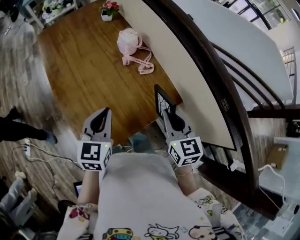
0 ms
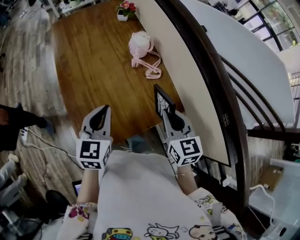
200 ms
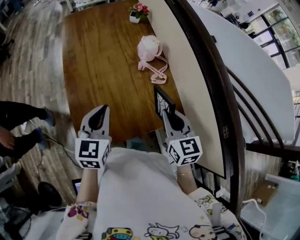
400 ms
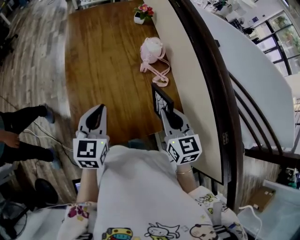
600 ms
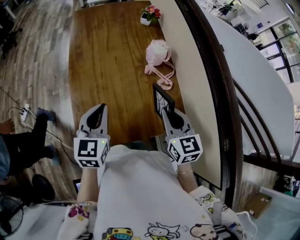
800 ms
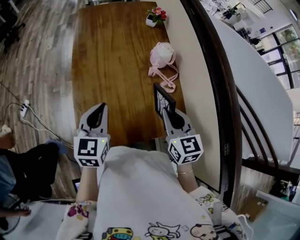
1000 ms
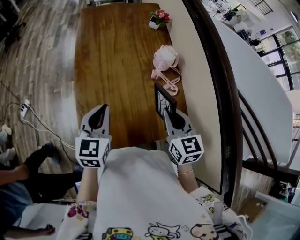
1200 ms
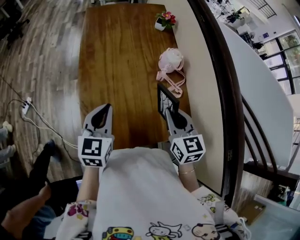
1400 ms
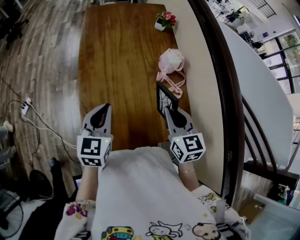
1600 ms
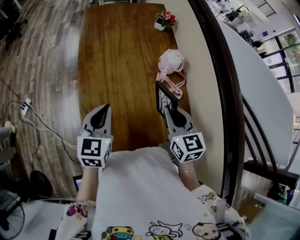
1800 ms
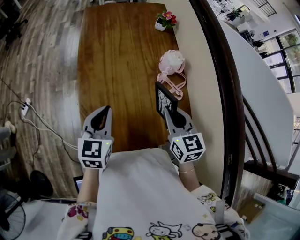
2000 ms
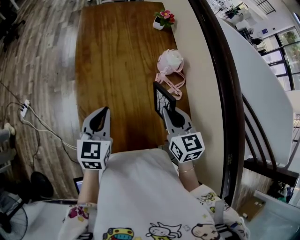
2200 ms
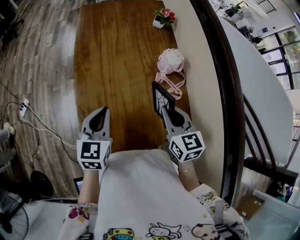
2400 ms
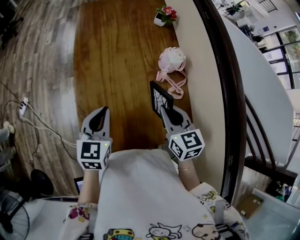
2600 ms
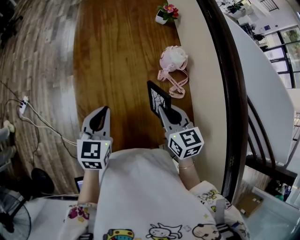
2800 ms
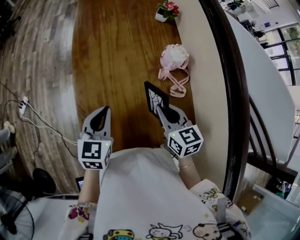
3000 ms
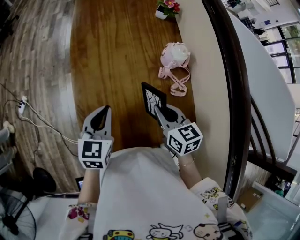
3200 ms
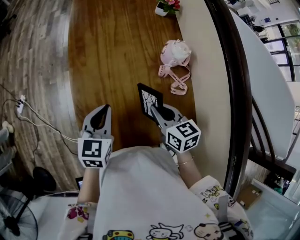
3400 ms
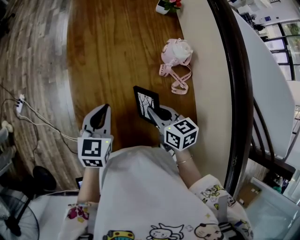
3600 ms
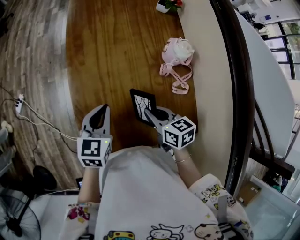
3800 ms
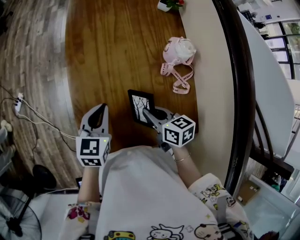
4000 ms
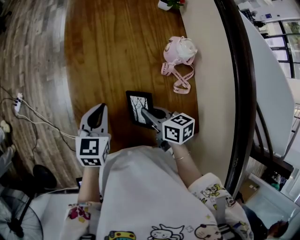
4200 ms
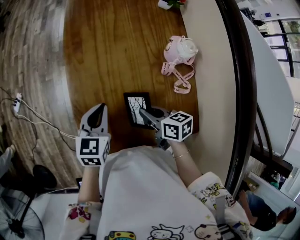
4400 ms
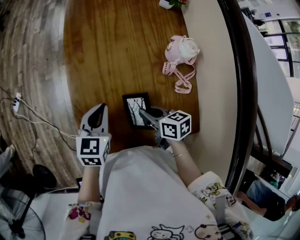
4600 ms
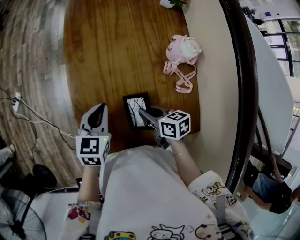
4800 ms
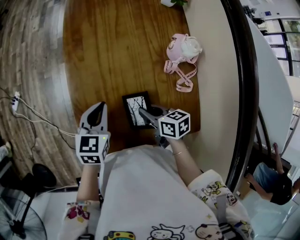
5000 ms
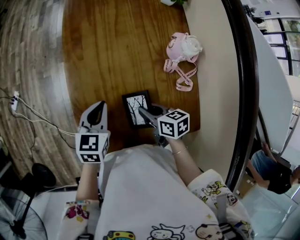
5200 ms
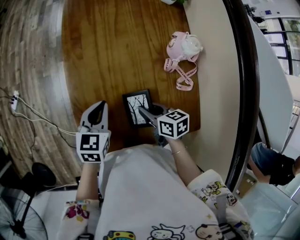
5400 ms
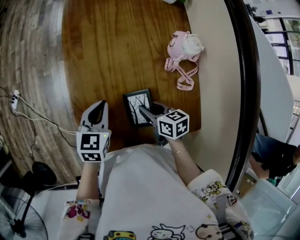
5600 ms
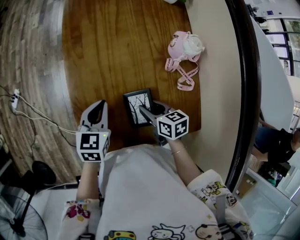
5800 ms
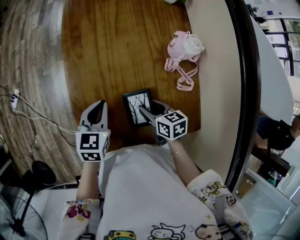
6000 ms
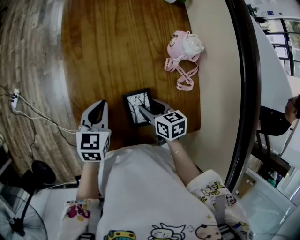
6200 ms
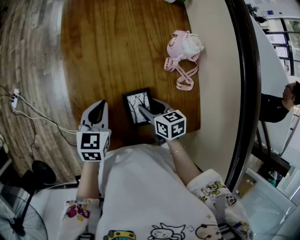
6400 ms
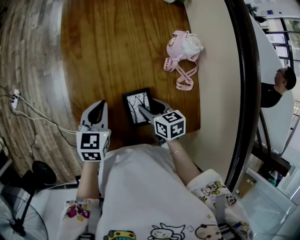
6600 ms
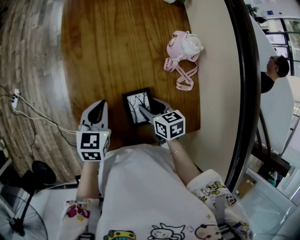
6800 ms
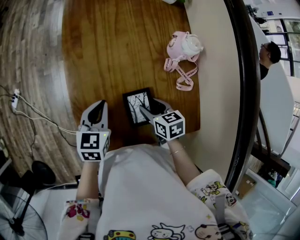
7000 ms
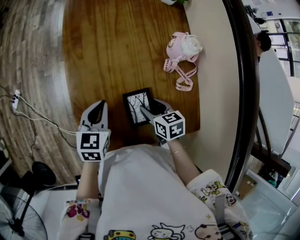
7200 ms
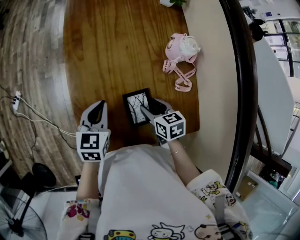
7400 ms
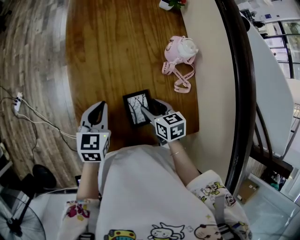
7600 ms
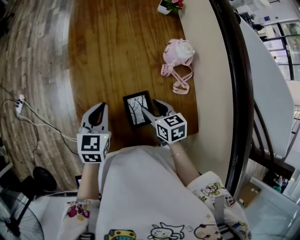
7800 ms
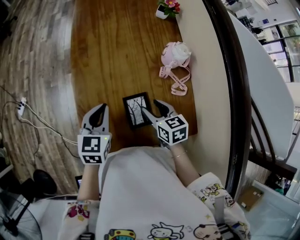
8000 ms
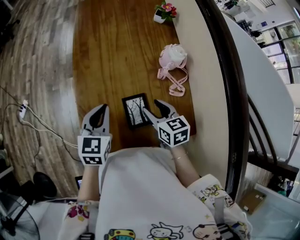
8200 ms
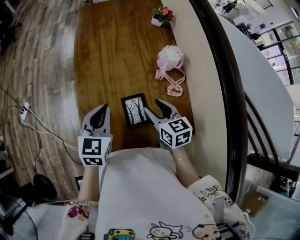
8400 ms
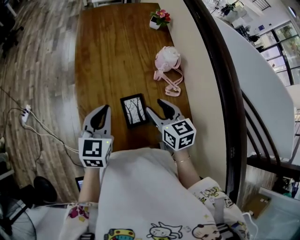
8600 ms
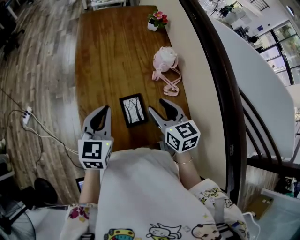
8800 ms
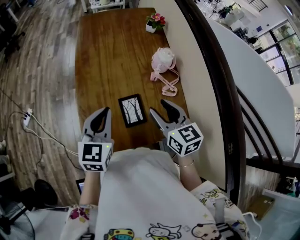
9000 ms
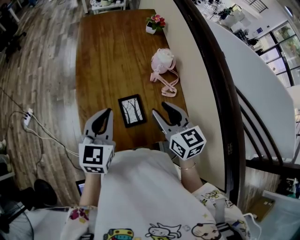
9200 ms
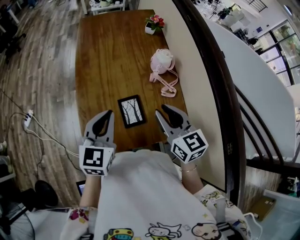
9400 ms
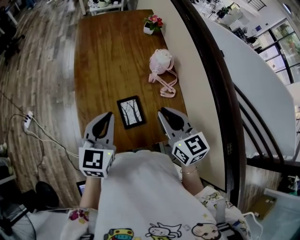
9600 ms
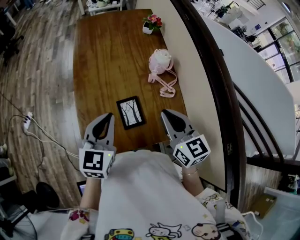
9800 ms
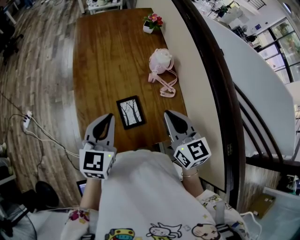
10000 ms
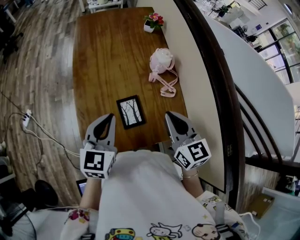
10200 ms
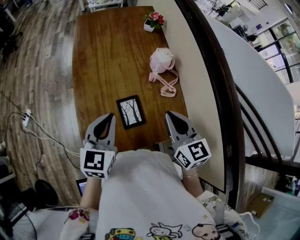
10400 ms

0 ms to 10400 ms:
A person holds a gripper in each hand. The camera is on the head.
0 ms to 1400 ms: The right gripper is displaced forward and to the left by roughly 15 cm, and swivels about 20 degrees; the left gripper moves to the left, some 10 cm, and rotates about 20 degrees.
1400 ms to 3000 ms: The left gripper moves some 5 cm. Meanwhile the right gripper travels downward by some 5 cm.
3000 ms to 4400 ms: The left gripper goes some 5 cm downward, while the right gripper goes approximately 10 cm downward and to the left, and changes its angle by some 30 degrees.
4400 ms to 6000 ms: The right gripper heads downward, covering roughly 5 cm, and opens up.
6000 ms to 7400 ms: The grippers move only a little.
7400 ms to 9000 ms: The right gripper heads upward, covering roughly 20 cm, and changes its angle by about 30 degrees. Meanwhile the left gripper moves upward and backward, about 15 cm, and changes its angle by about 20 degrees.
9000 ms to 10400 ms: The right gripper changes place by about 5 cm, and closes.

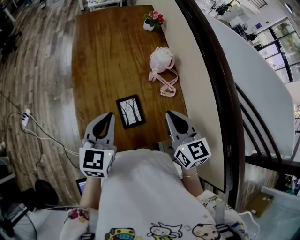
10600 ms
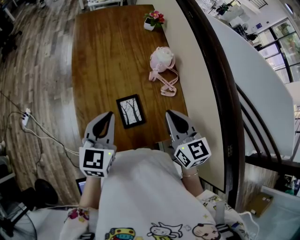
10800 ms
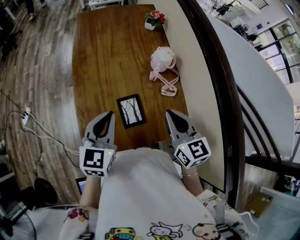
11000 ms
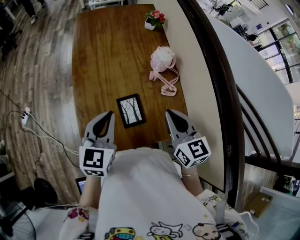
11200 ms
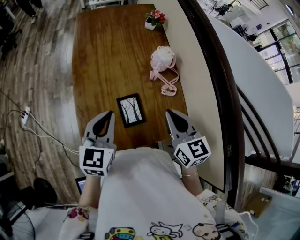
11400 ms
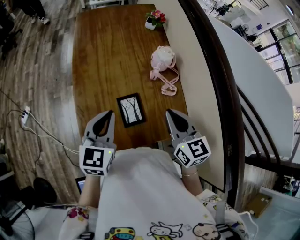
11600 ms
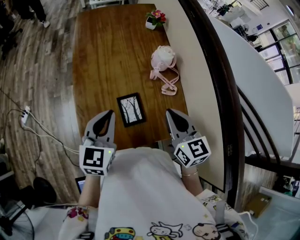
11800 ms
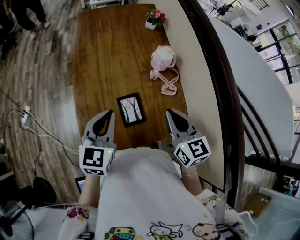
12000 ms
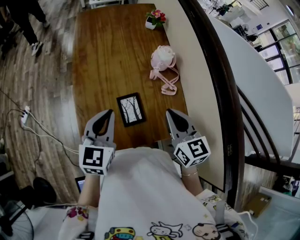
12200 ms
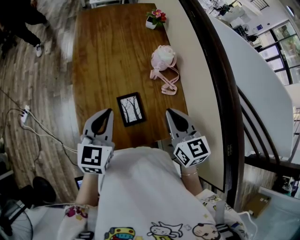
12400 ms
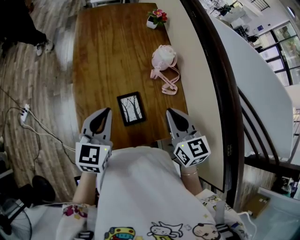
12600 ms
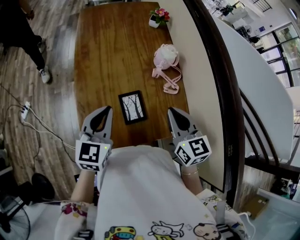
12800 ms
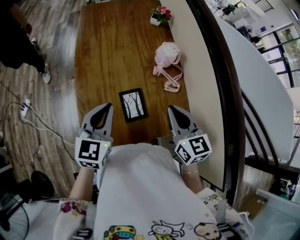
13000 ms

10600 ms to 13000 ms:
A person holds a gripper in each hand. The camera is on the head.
10600 ms to 11800 ms: Both grippers stay put.
11800 ms to 13000 ms: Both grippers stay about where they are.

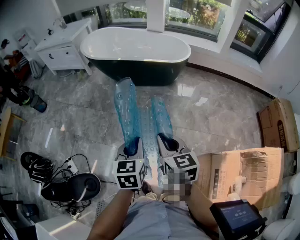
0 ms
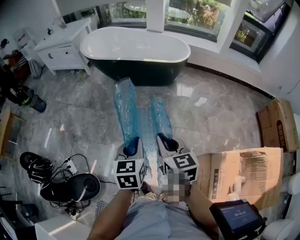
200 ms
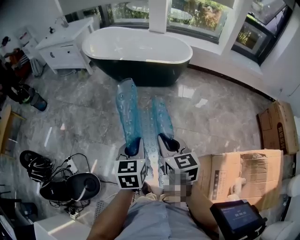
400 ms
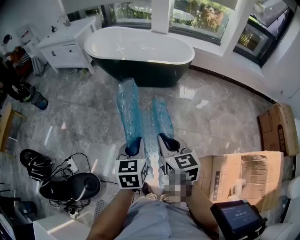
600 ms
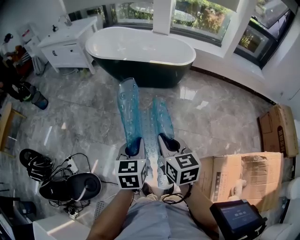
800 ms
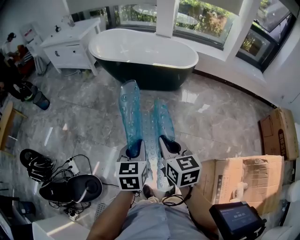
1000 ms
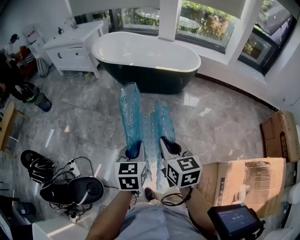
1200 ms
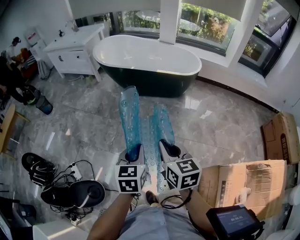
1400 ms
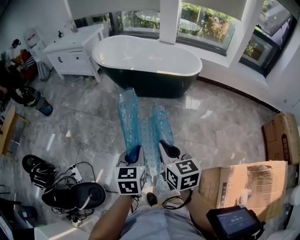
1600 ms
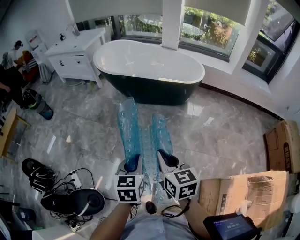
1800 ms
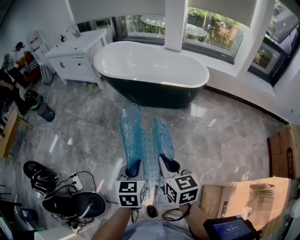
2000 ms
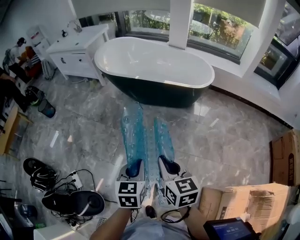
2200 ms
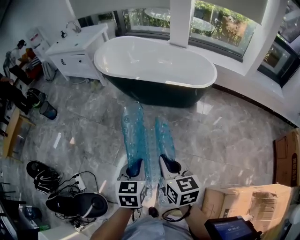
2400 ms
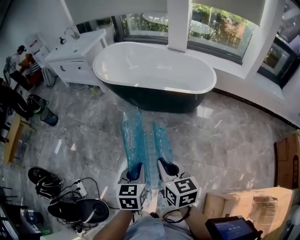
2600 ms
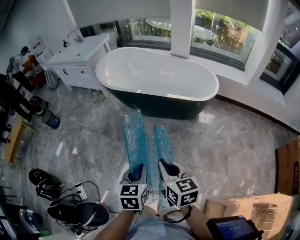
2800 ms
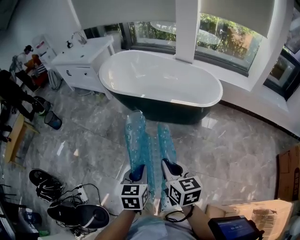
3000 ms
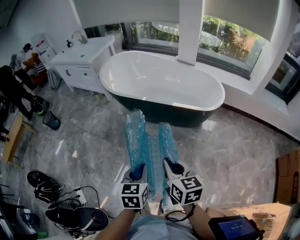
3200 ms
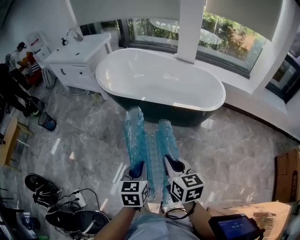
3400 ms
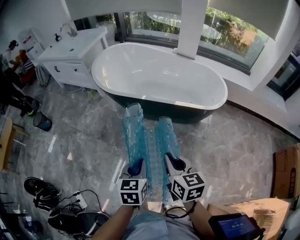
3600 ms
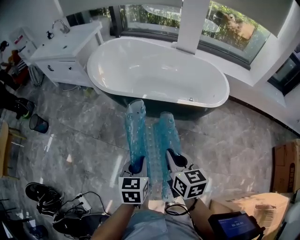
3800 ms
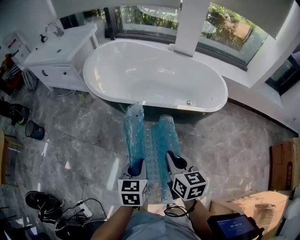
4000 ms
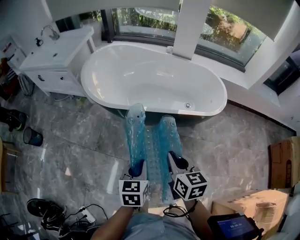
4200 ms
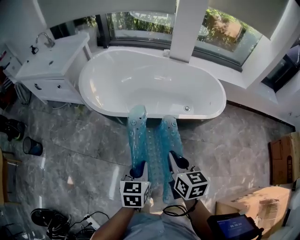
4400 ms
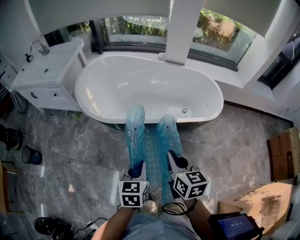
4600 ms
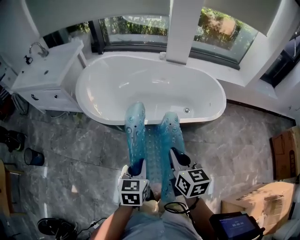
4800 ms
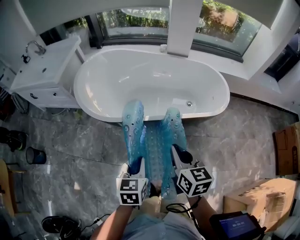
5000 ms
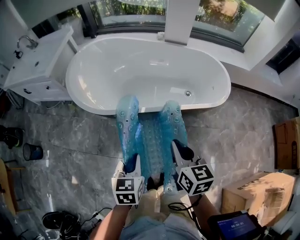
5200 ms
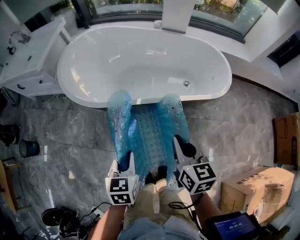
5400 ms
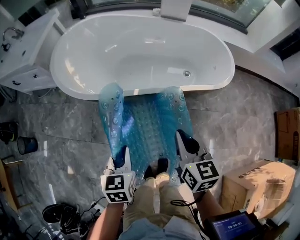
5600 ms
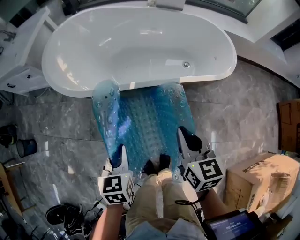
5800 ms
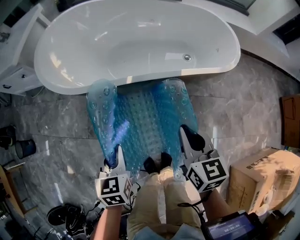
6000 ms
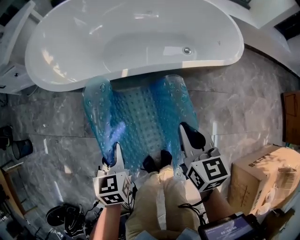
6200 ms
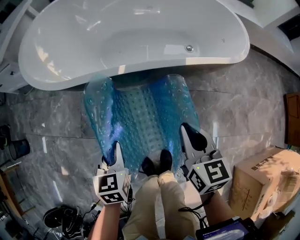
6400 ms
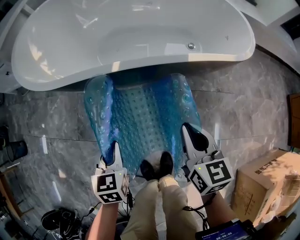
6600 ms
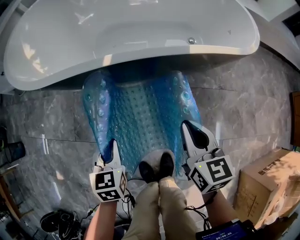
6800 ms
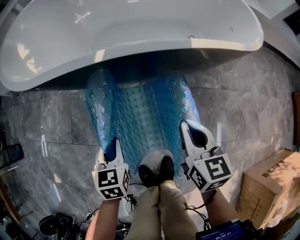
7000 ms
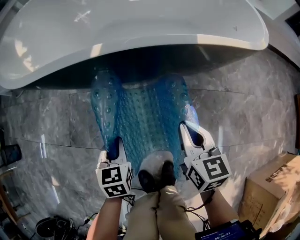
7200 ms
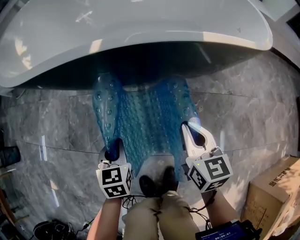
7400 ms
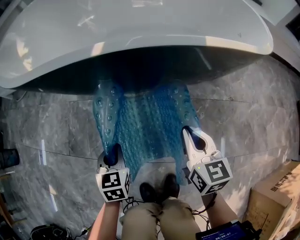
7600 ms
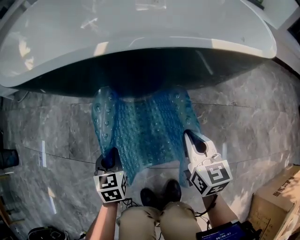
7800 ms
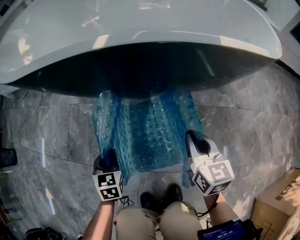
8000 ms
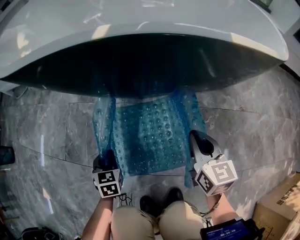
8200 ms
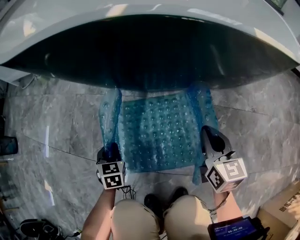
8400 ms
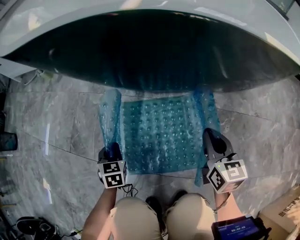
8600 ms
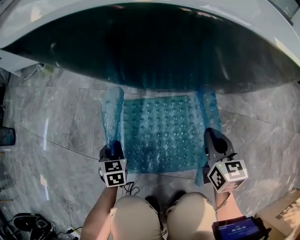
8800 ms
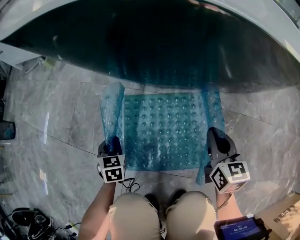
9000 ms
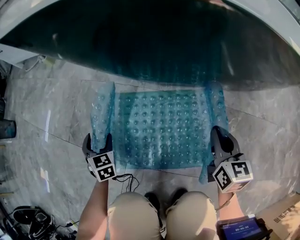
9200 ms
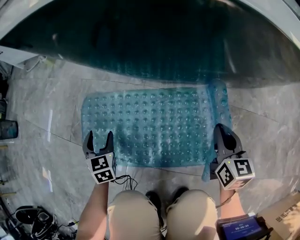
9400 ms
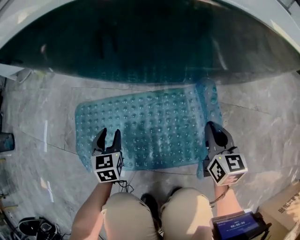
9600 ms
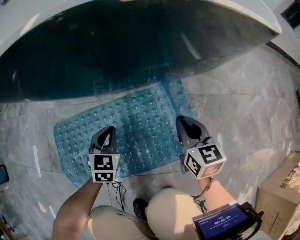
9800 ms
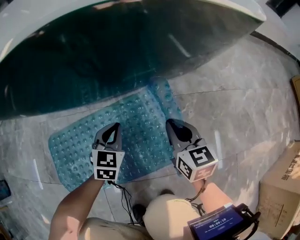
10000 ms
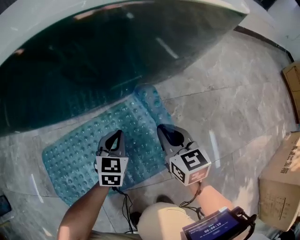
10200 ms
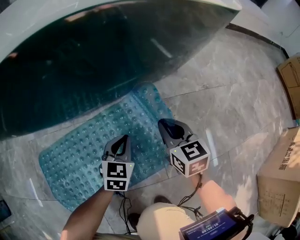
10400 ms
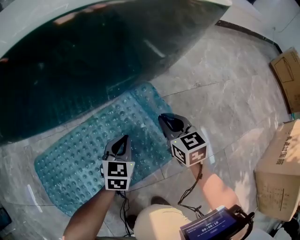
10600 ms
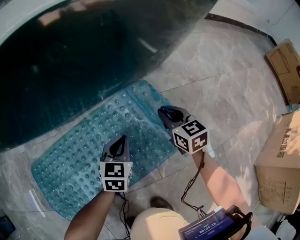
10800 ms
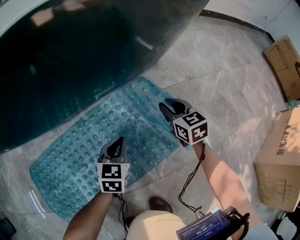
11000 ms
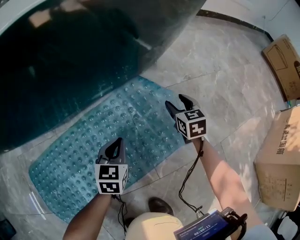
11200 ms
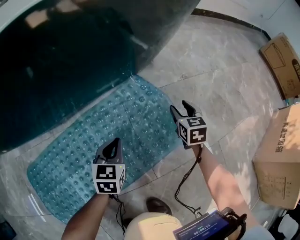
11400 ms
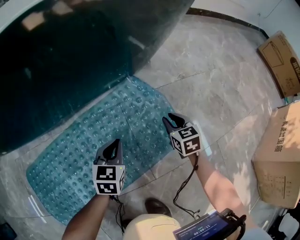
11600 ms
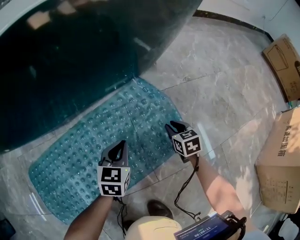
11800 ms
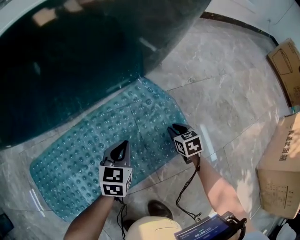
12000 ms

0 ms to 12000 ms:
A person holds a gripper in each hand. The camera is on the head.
0 ms to 1600 ms: The grippers both shift to the left by some 10 cm.
1600 ms to 3000 ms: The two grippers go about 25 cm forward.
3000 ms to 4400 ms: The left gripper travels forward and to the left by about 35 cm. The right gripper shifts about 30 cm forward.
4400 ms to 6000 ms: The two grippers go some 20 cm downward and forward.
6000 ms to 7600 ms: The grippers both shift downward by approximately 35 cm.
7600 ms to 9000 ms: The left gripper is displaced downward and to the left by about 25 cm. The right gripper shifts some 15 cm downward.
9000 ms to 10400 ms: The left gripper ends up about 35 cm from where it was, swivels approximately 50 degrees, and opens and closes again. The right gripper moves about 10 cm.
10400 ms to 12000 ms: The left gripper travels to the right by about 5 cm. Meanwhile the right gripper moves downward and to the right, roughly 25 cm, rotates roughly 20 degrees, and opens, then closes once more.
